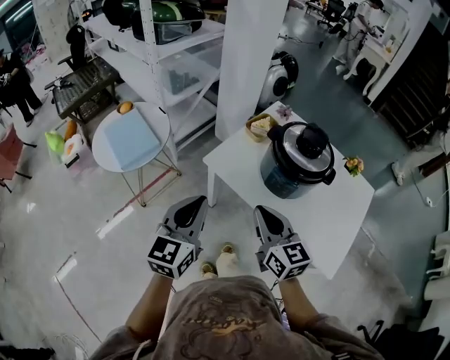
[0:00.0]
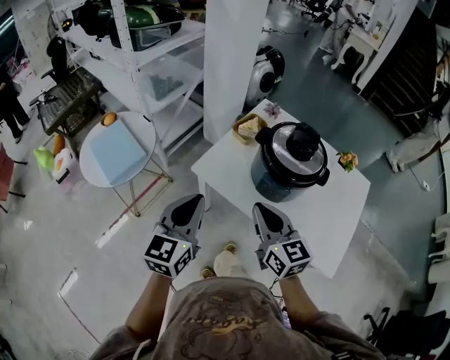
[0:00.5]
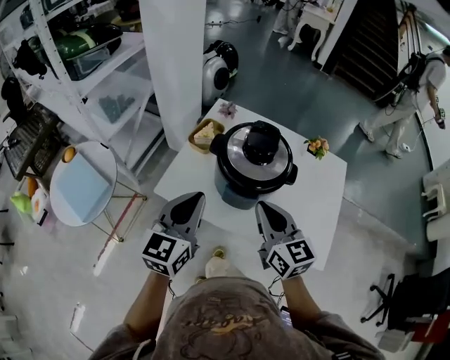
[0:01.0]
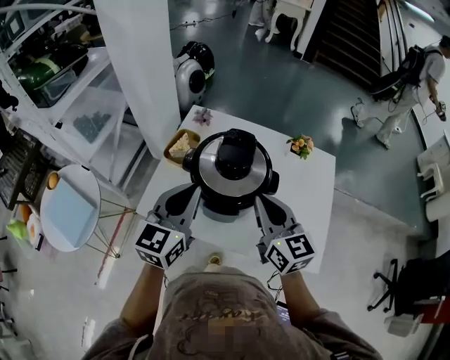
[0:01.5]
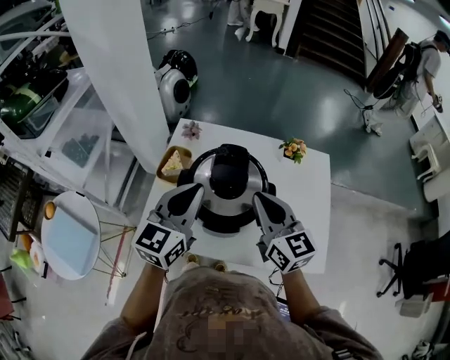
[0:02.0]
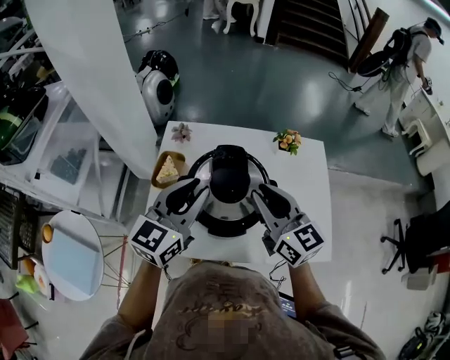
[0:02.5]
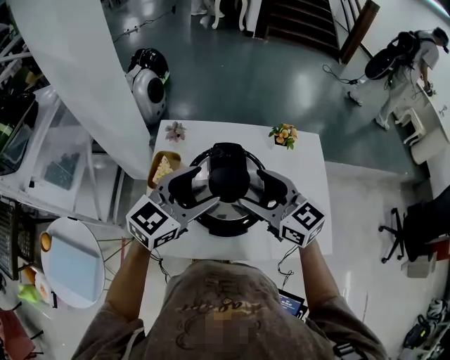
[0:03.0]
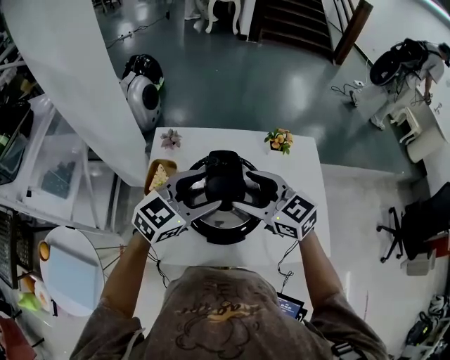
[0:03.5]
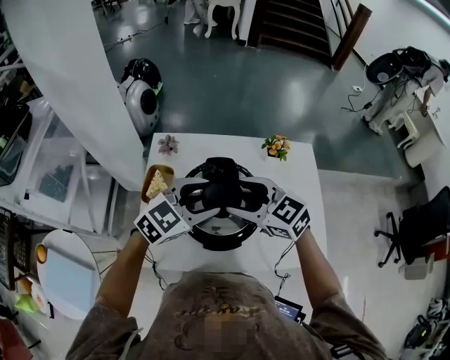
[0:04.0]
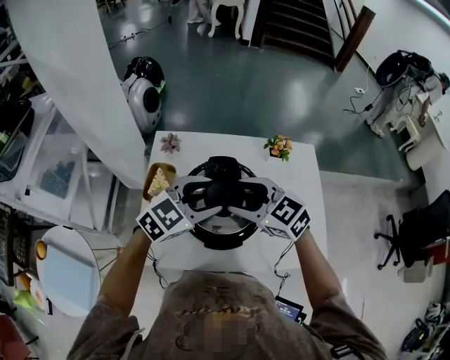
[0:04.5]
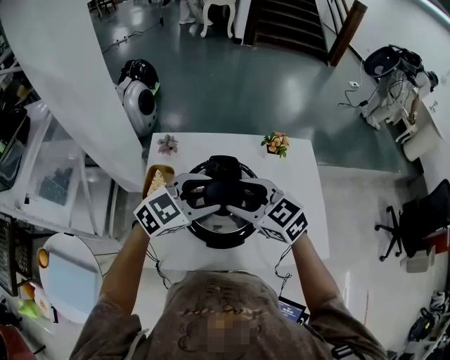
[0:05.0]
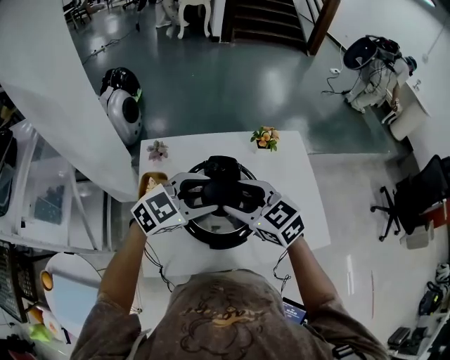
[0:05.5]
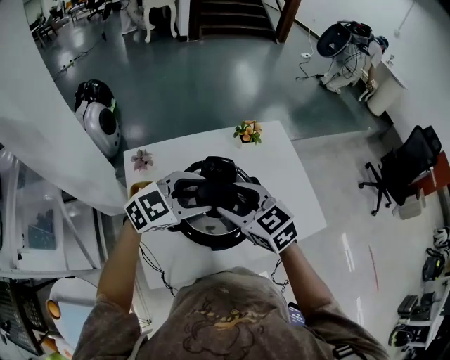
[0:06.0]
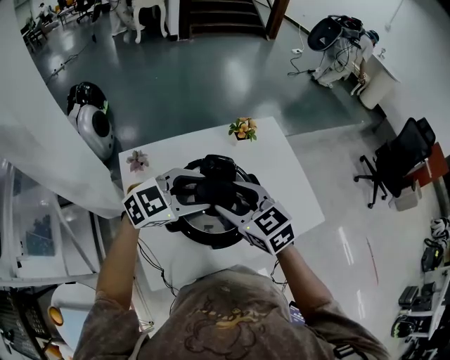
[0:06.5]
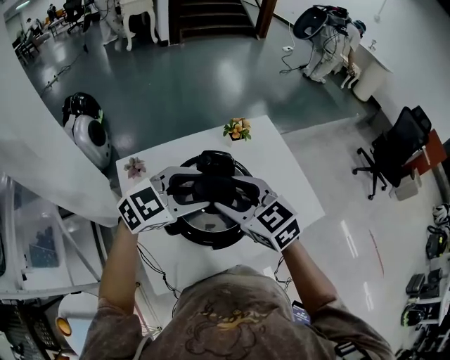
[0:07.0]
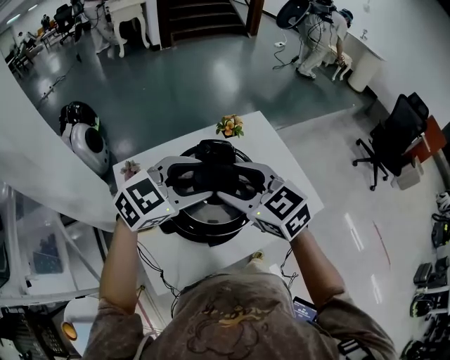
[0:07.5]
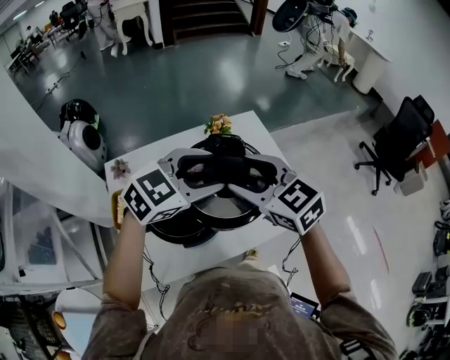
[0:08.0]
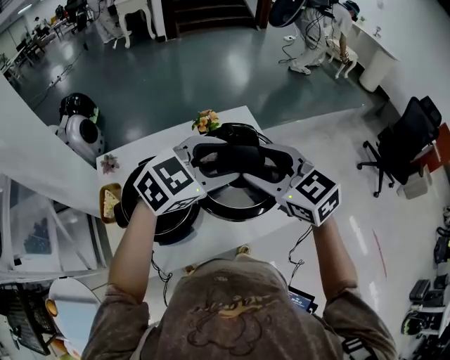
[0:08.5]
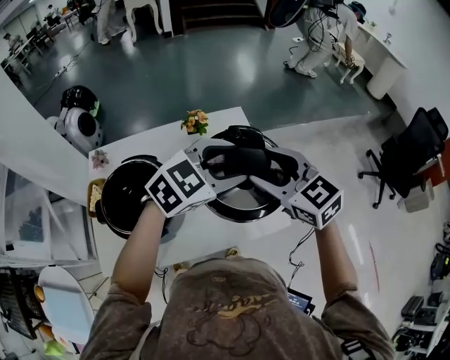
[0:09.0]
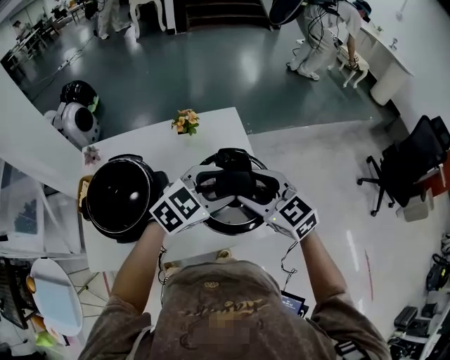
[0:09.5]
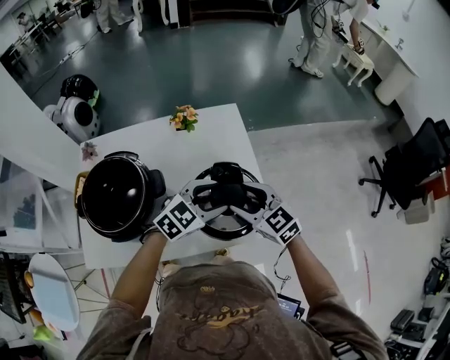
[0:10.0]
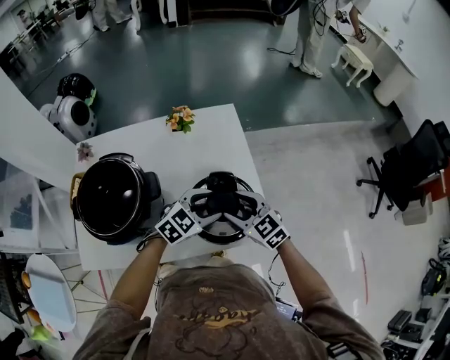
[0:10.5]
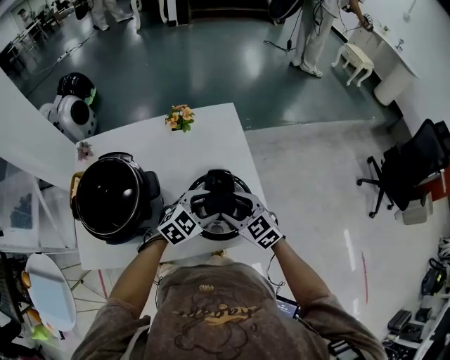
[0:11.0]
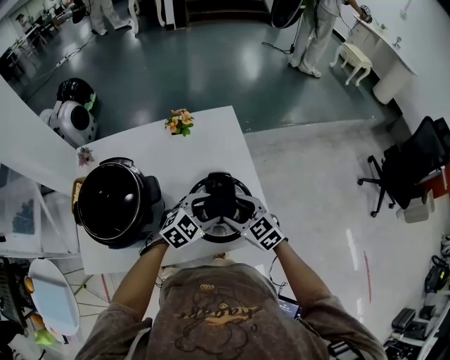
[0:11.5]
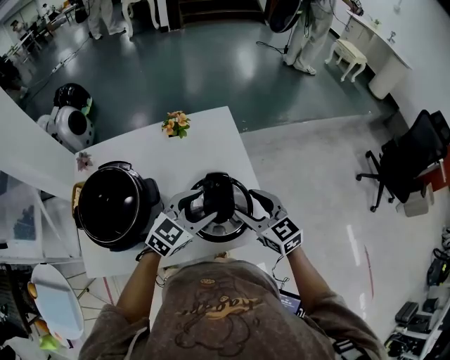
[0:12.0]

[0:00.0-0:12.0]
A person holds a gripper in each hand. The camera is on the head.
0:00.0 to 0:02.0: The left gripper ends up some 35 cm from where it was, and turns by about 40 degrees, while the right gripper changes place by roughly 30 cm, and turns by approximately 30 degrees.
0:02.0 to 0:04.0: The left gripper is displaced downward, forward and to the right by roughly 10 cm, changes its angle by approximately 50 degrees, and opens up, while the right gripper travels to the left and forward by approximately 10 cm, turns by approximately 30 degrees, and opens.
0:04.0 to 0:06.0: The left gripper swivels some 30 degrees. The right gripper changes its angle by approximately 30 degrees.
0:06.0 to 0:08.0: The grippers both shift to the right and upward by roughly 15 cm.
0:08.0 to 0:10.0: Both grippers travel together to the right and downward, about 25 cm.
0:10.0 to 0:12.0: The left gripper goes downward and returns, some 10 cm each way. The right gripper moves approximately 10 cm downward and comes back.

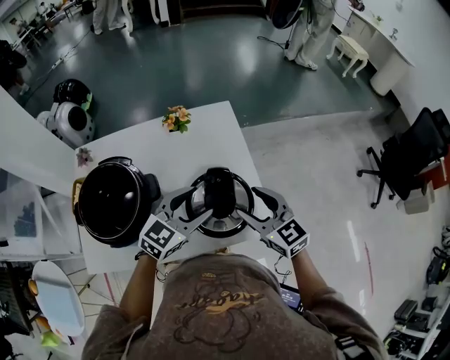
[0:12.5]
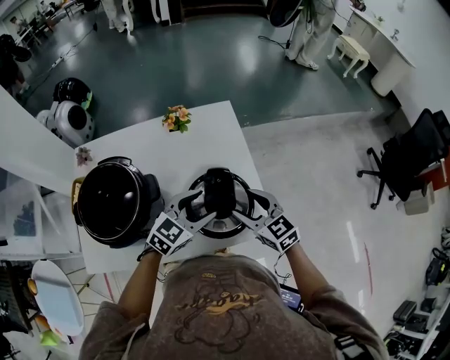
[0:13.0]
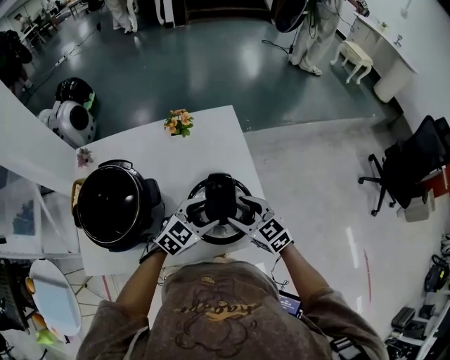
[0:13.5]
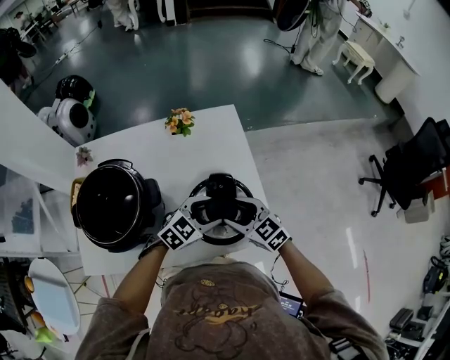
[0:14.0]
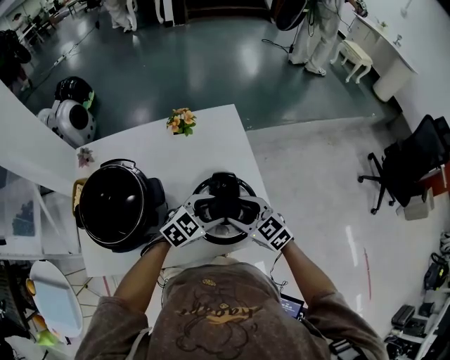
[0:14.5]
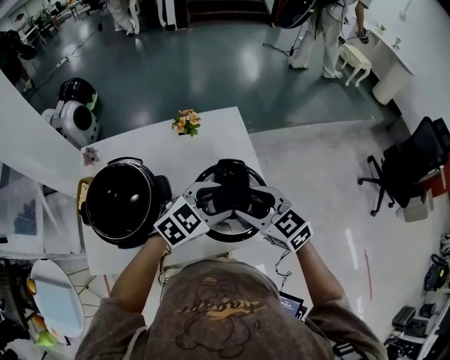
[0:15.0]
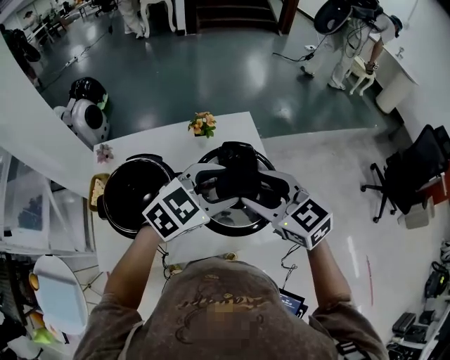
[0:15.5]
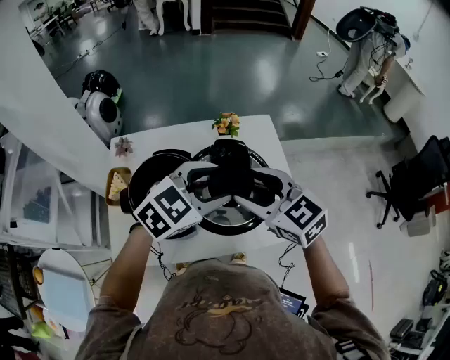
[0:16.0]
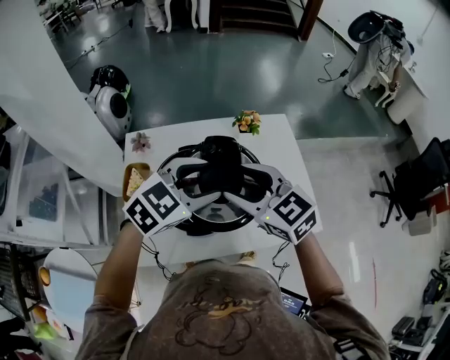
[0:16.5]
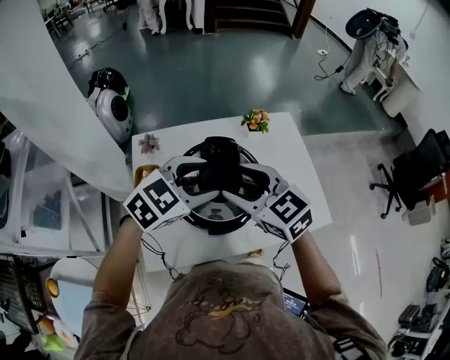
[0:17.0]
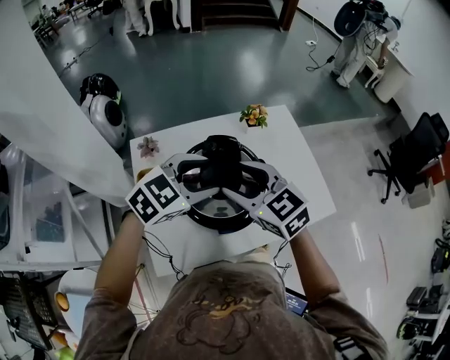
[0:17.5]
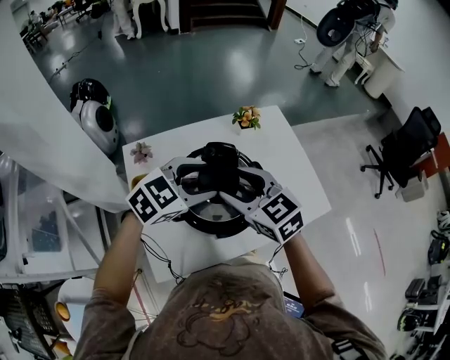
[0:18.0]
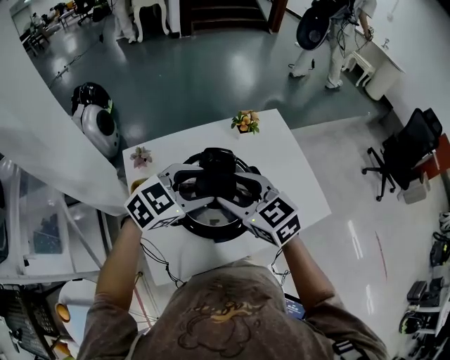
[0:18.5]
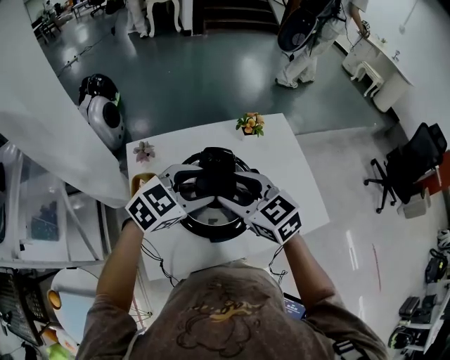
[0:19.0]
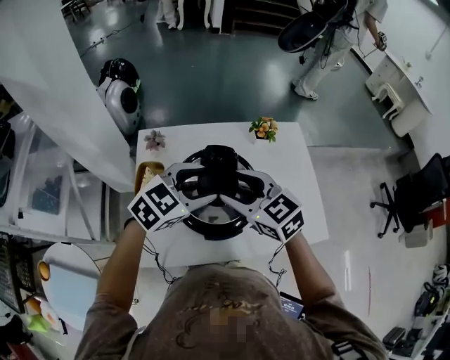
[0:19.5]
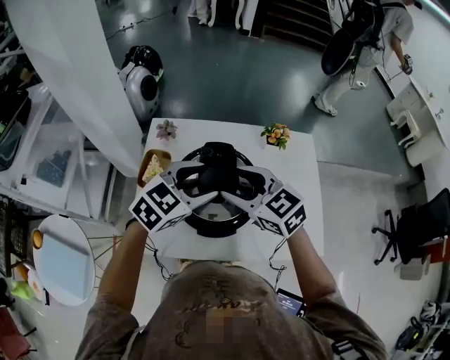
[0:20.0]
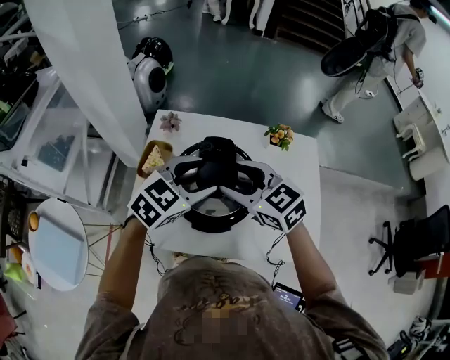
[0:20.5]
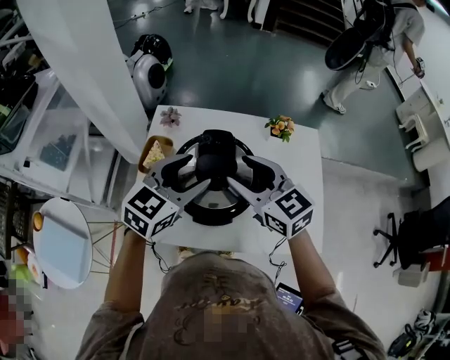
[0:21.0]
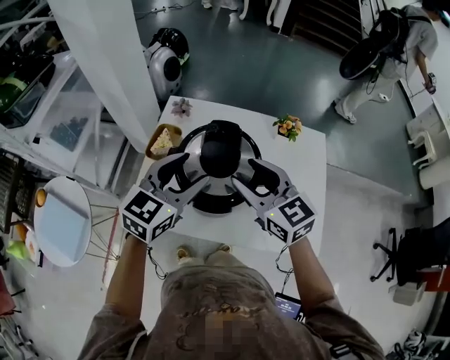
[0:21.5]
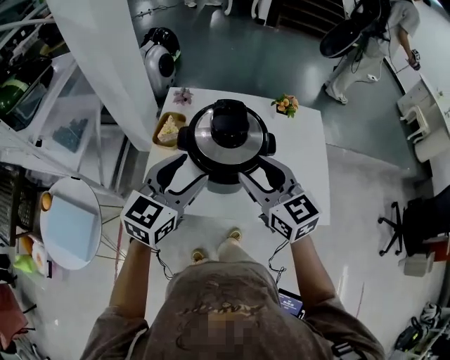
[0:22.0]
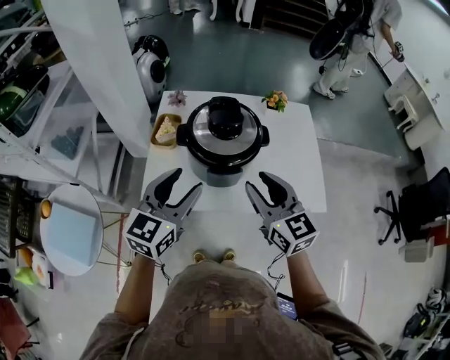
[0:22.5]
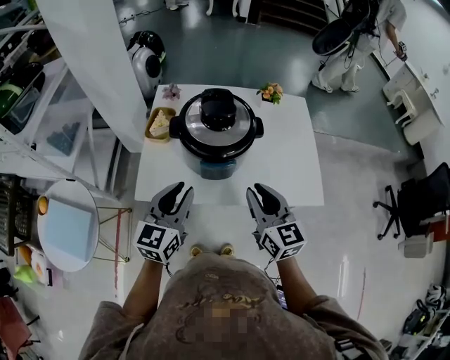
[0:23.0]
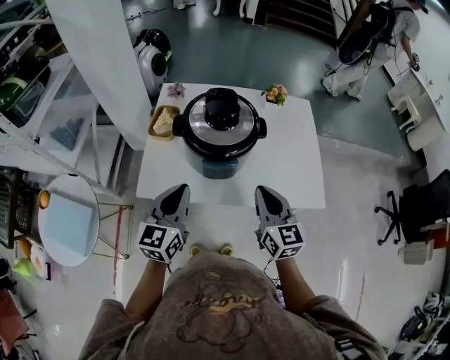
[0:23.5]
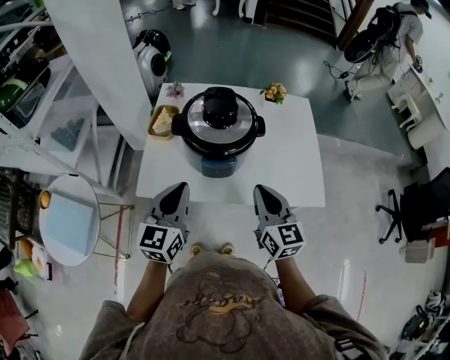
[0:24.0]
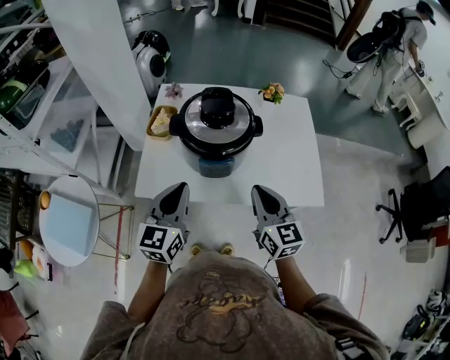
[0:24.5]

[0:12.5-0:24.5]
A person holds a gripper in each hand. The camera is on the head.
0:12.5 to 0:14.5: The grippers both shift downward by roughly 10 cm. The left gripper rotates approximately 20 degrees.
0:14.5 to 0:16.5: Both grippers move to the left and upward, some 35 cm.
0:16.5 to 0:18.5: Both grippers travel together to the left, some 5 cm.
0:18.5 to 0:20.5: The left gripper swivels about 30 degrees. Meanwhile the right gripper rotates roughly 30 degrees.
0:20.5 to 0:22.5: The left gripper is displaced backward and to the left by approximately 20 cm, and changes its angle by about 30 degrees, while the right gripper travels backward by about 20 cm, and swivels roughly 30 degrees.
0:22.5 to 0:24.5: The grippers both shift downward by about 5 cm. The right gripper closes up, while the left gripper closes up.

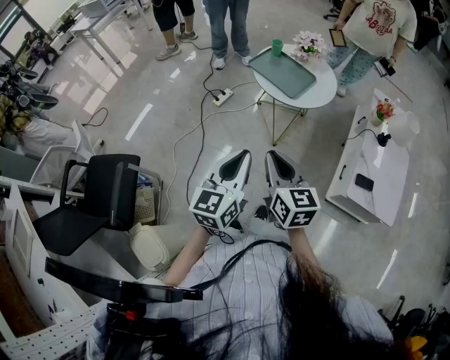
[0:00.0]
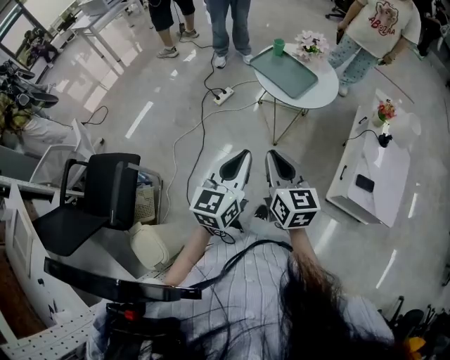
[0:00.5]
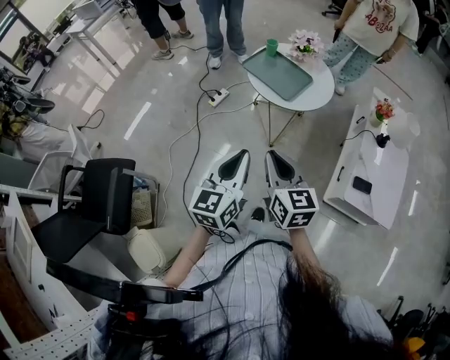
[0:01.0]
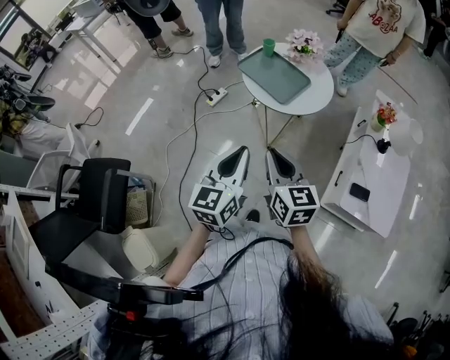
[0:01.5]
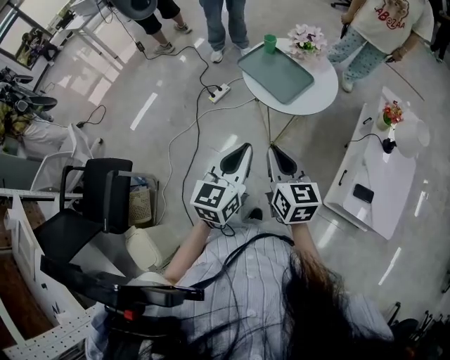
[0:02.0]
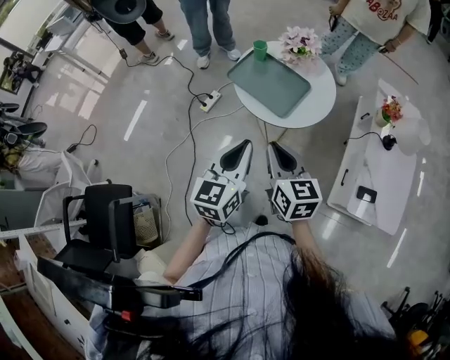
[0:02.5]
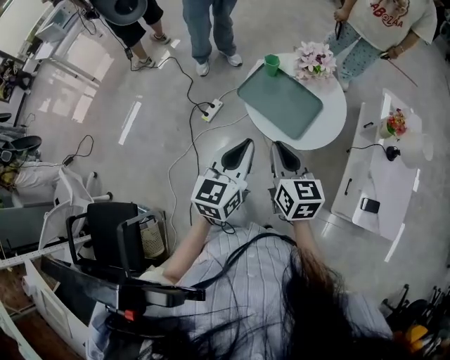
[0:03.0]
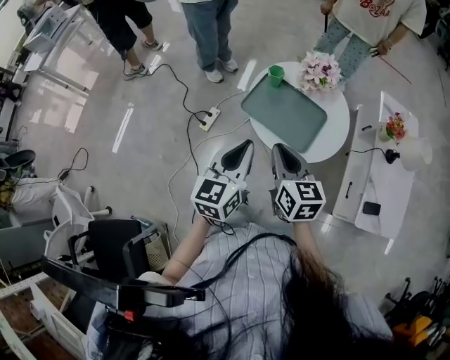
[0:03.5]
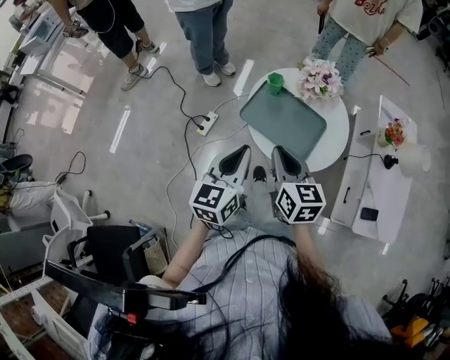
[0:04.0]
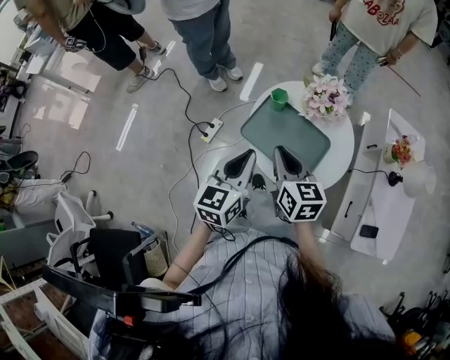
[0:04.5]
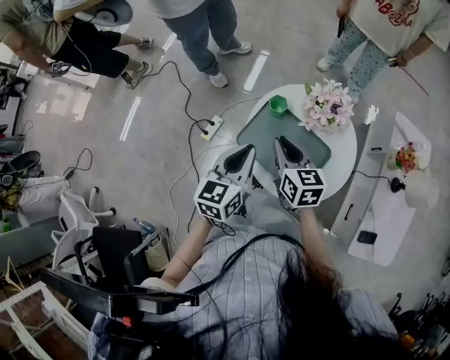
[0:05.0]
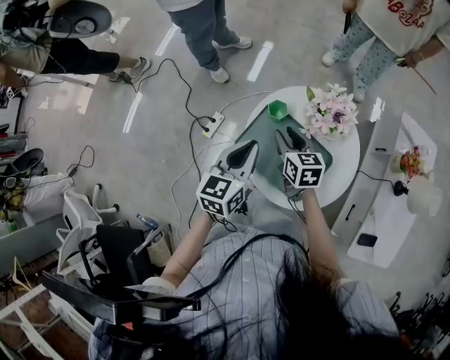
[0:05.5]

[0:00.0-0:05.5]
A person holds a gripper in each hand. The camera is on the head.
0:00.0 to 0:02.0: The two grippers go about 15 cm forward and to the right.
0:02.0 to 0:03.5: The two grippers go roughly 30 cm forward and to the left.
0:03.5 to 0:05.5: The right gripper travels forward and downward by roughly 30 cm, while the left gripper travels forward by about 20 cm.
